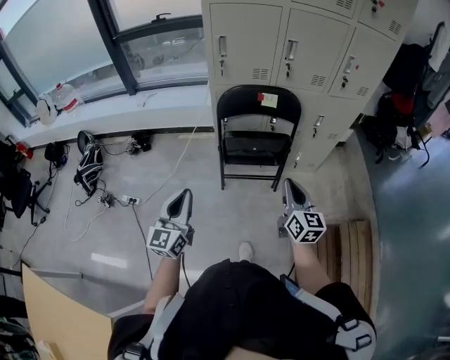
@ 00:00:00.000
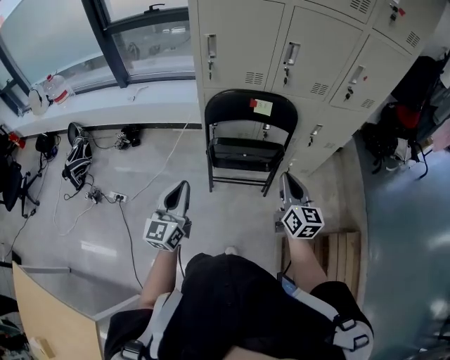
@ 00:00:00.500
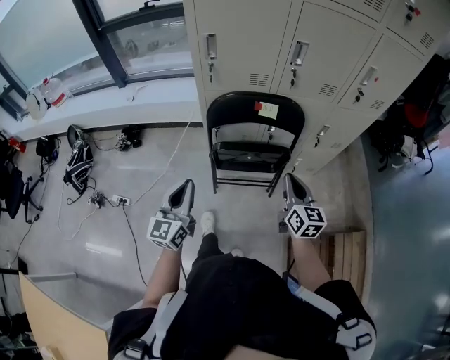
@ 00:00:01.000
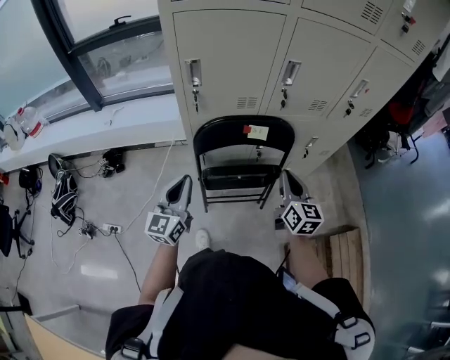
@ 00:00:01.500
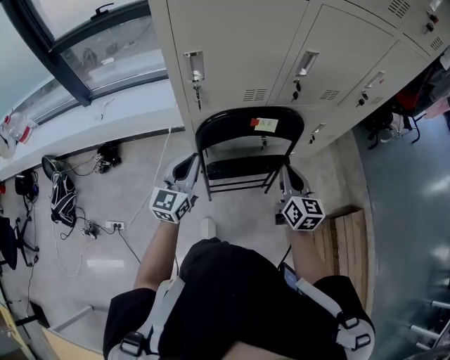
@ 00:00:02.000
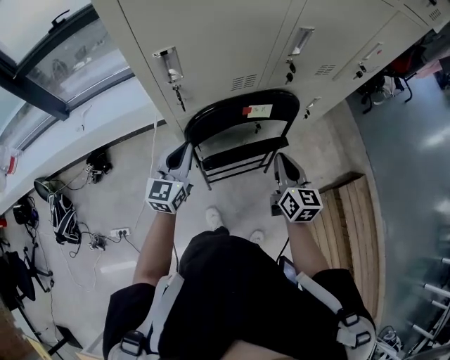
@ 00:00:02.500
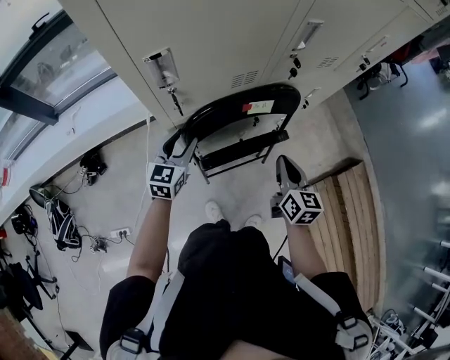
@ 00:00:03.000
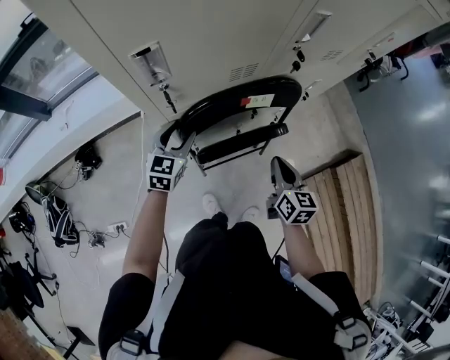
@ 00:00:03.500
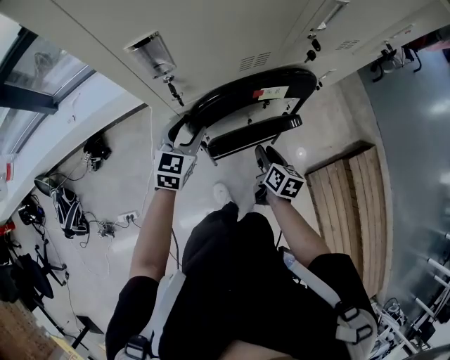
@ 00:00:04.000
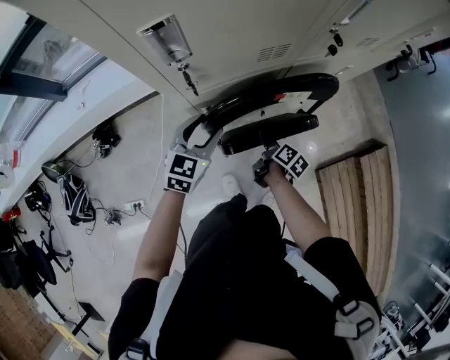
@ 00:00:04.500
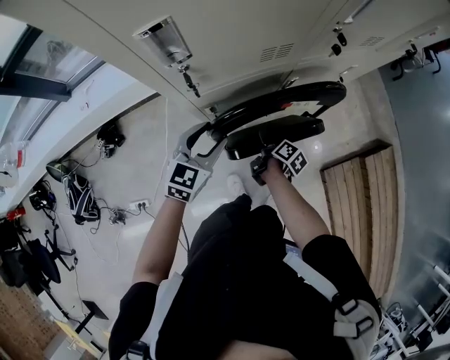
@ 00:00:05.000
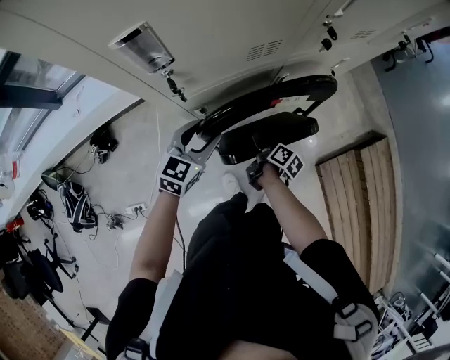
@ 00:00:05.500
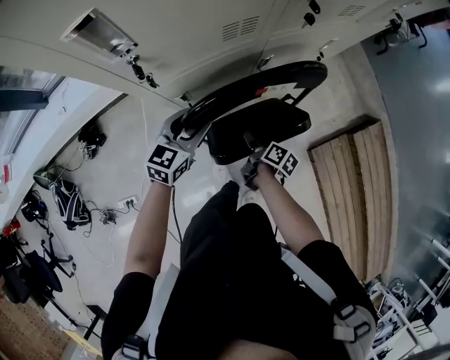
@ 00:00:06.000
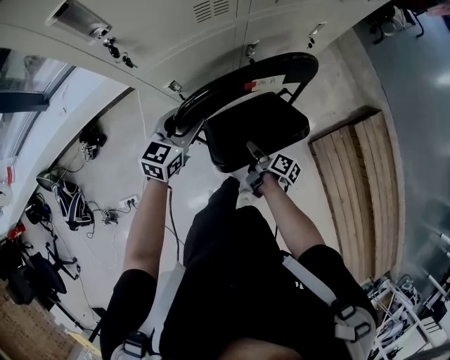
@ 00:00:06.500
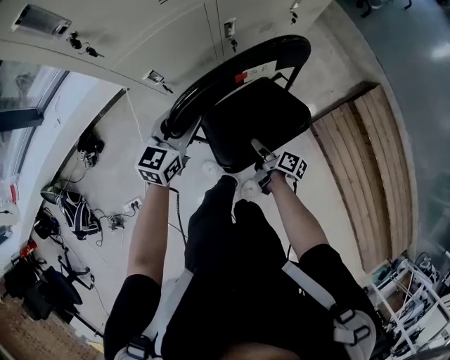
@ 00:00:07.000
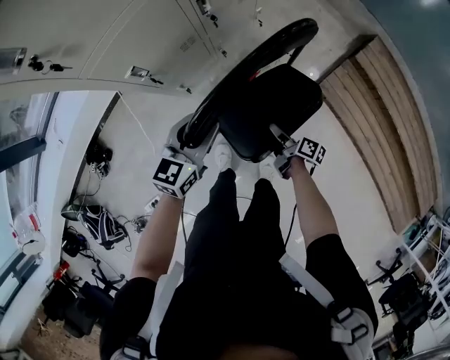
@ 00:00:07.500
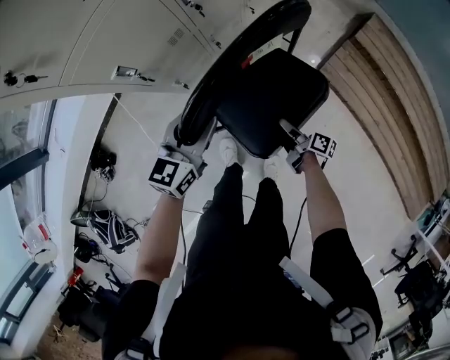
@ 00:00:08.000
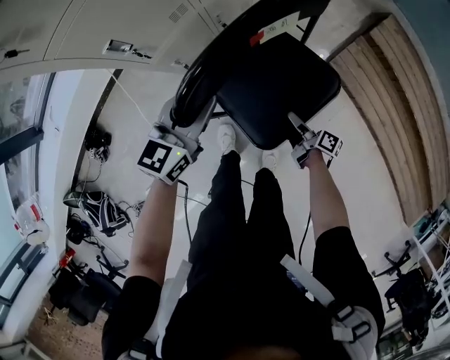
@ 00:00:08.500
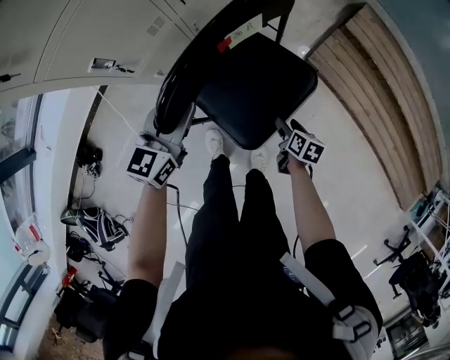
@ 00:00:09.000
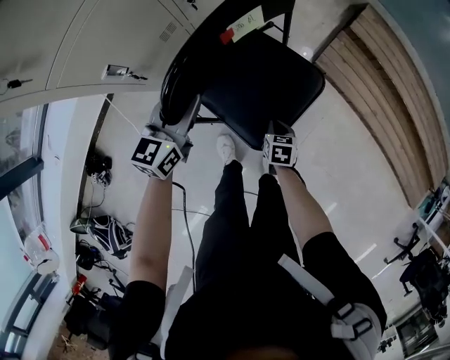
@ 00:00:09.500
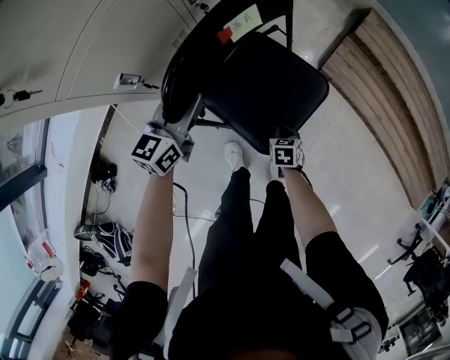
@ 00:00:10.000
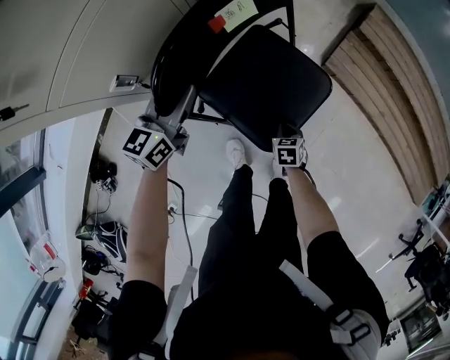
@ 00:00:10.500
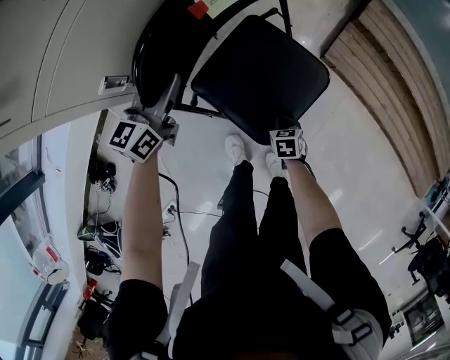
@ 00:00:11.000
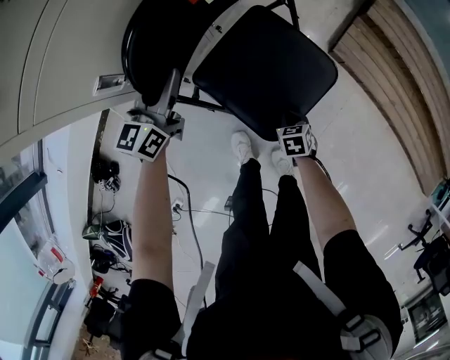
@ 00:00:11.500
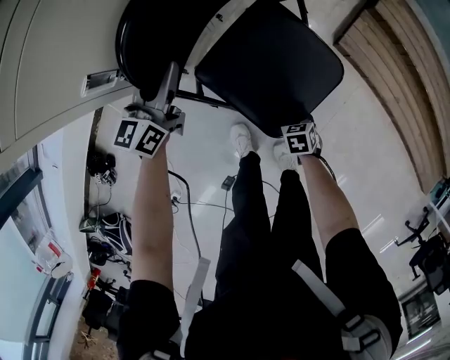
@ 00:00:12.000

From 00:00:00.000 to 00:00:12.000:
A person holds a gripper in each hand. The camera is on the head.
From 00:00:00.000 to 00:00:02.000: The grippers both shift forward by some 35 cm.
From 00:00:02.000 to 00:00:04.000: The right gripper travels downward by approximately 20 cm, rotates approximately 40 degrees, and opens, while the left gripper heads downward and forward, covering roughly 15 cm, swivels roughly 30 degrees, and opens.
From 00:00:04.000 to 00:00:06.000: The right gripper is displaced downward by approximately 10 cm, turns by some 40 degrees, and opens and closes again. Meanwhile the left gripper moves to the right, about 5 cm.
From 00:00:06.000 to 00:00:08.000: The right gripper is displaced backward, to the right and downward by some 30 cm. The left gripper heads backward and to the right, covering about 20 cm.
From 00:00:08.000 to 00:00:10.000: The left gripper heads to the left and forward, covering approximately 10 cm. The right gripper goes some 5 cm downward, tips its fingers downward by roughly 40 degrees, and closes its fingers.
From 00:00:10.000 to 00:00:12.000: The right gripper goes roughly 10 cm downward; the left gripper moves some 10 cm.

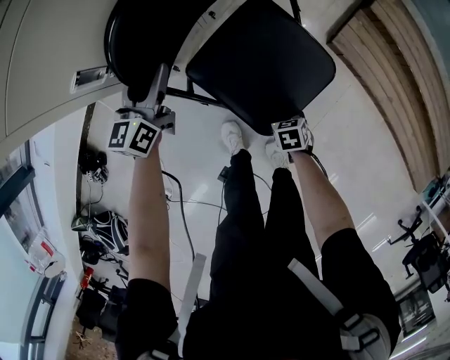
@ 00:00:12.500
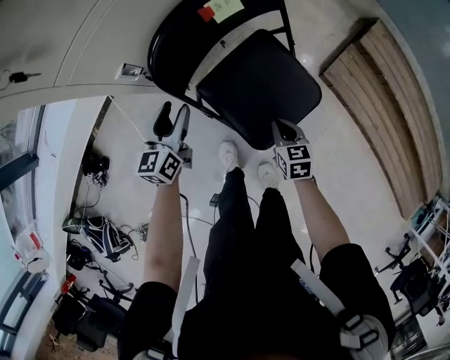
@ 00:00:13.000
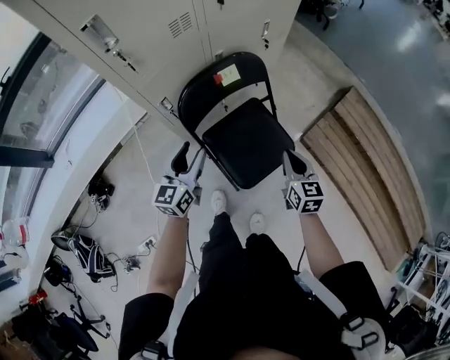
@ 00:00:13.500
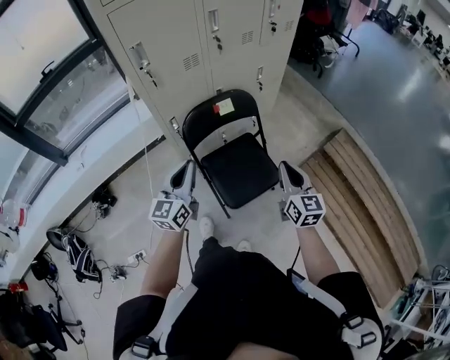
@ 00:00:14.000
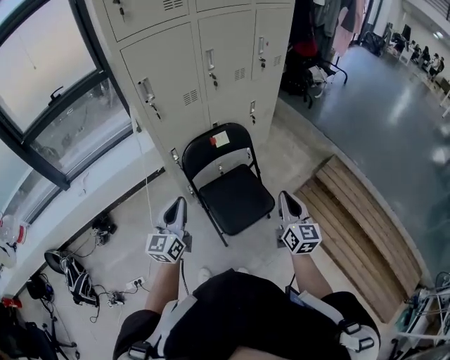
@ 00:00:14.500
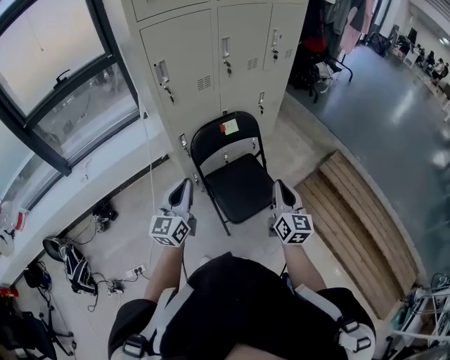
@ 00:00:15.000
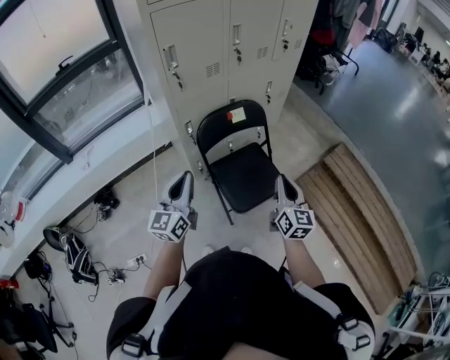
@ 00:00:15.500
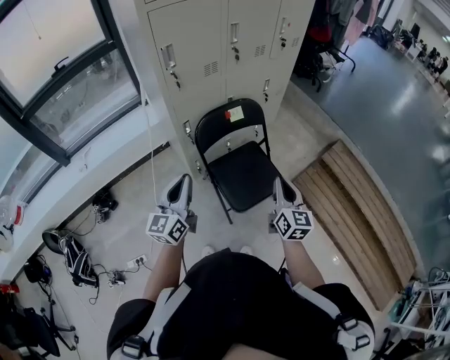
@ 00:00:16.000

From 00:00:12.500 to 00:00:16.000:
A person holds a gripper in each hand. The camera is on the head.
From 00:00:12.500 to 00:00:14.500: The left gripper moves upward, some 35 cm, turns by some 30 degrees, and closes, while the right gripper goes roughly 60 cm upward, and points its fingers approximately 70 degrees further upward.
From 00:00:14.500 to 00:00:16.000: The right gripper moves to the left, about 10 cm. The left gripper ends up about 5 cm from where it was.

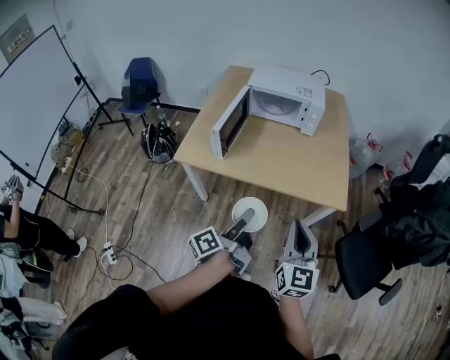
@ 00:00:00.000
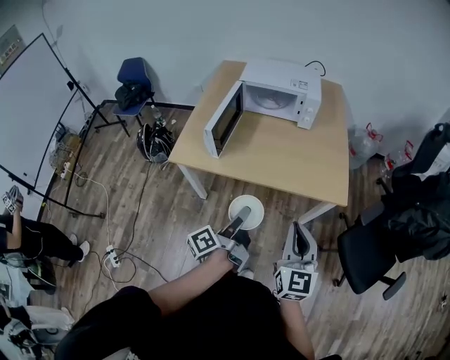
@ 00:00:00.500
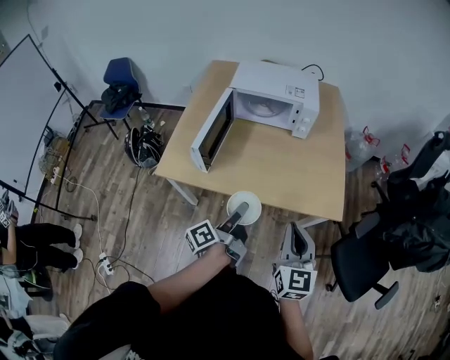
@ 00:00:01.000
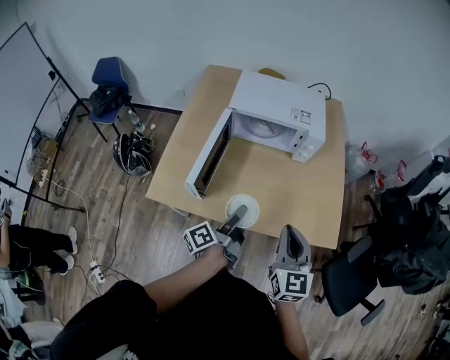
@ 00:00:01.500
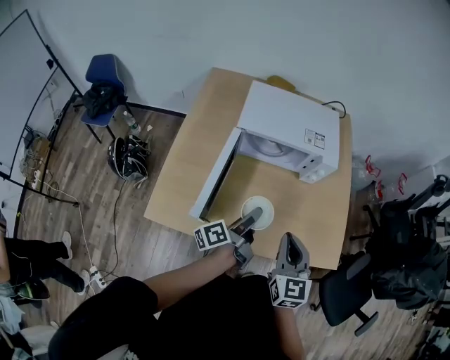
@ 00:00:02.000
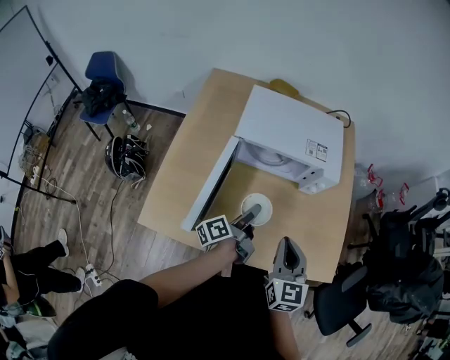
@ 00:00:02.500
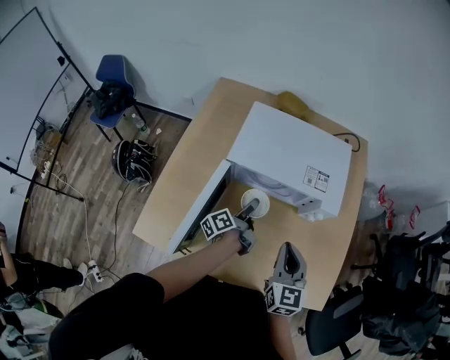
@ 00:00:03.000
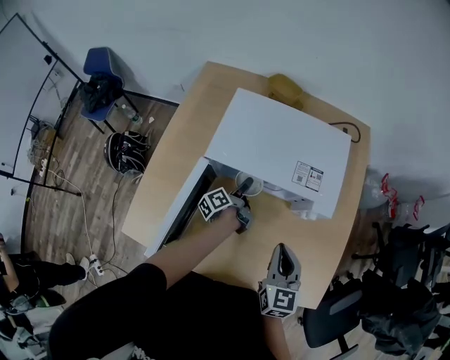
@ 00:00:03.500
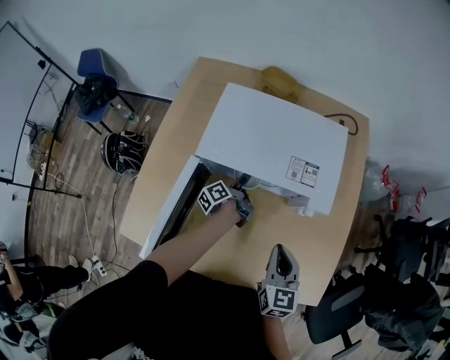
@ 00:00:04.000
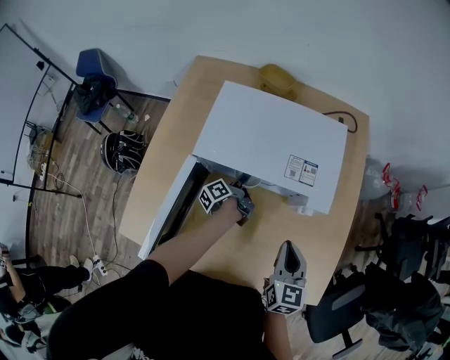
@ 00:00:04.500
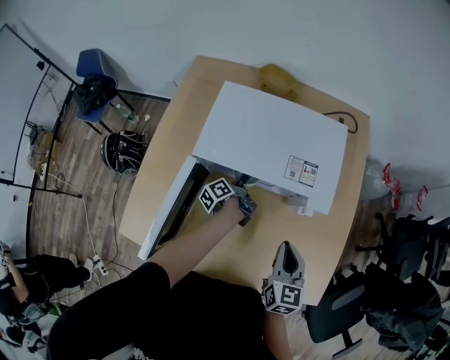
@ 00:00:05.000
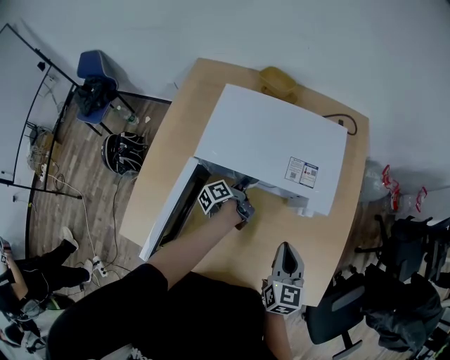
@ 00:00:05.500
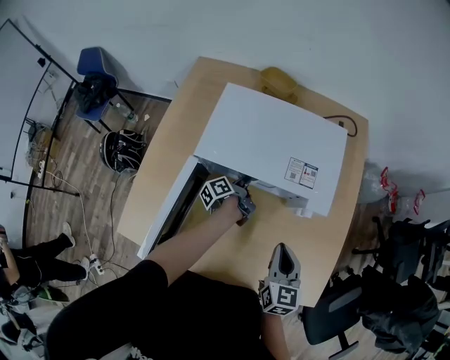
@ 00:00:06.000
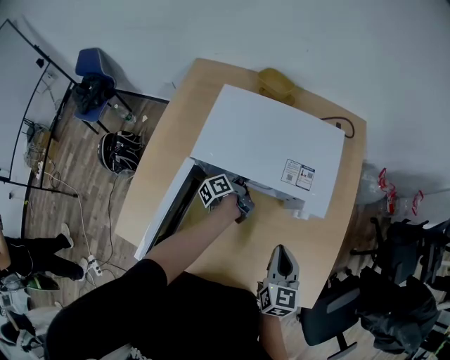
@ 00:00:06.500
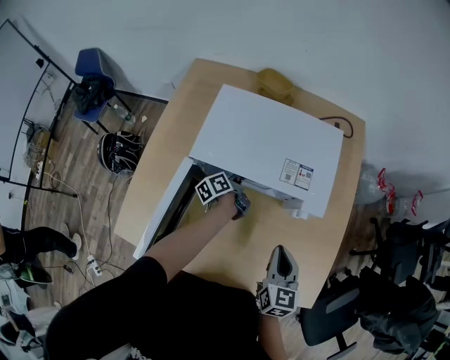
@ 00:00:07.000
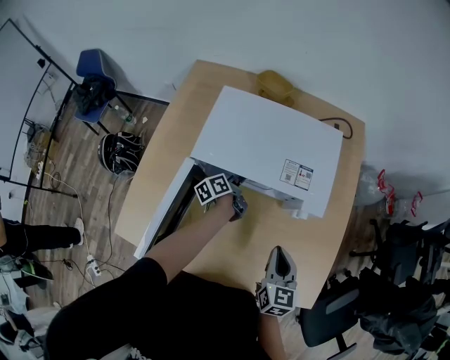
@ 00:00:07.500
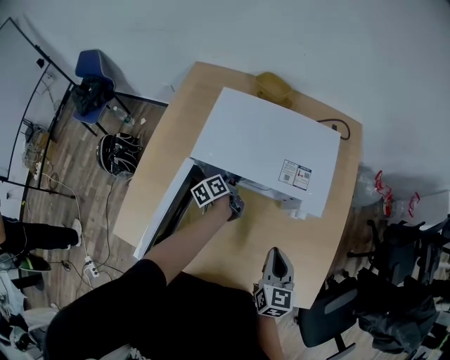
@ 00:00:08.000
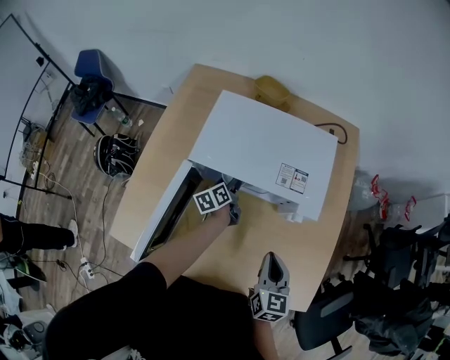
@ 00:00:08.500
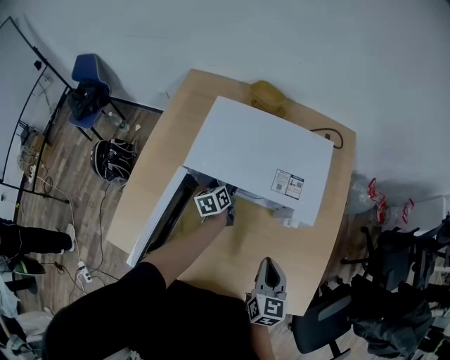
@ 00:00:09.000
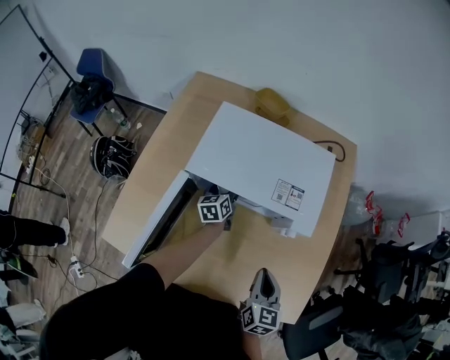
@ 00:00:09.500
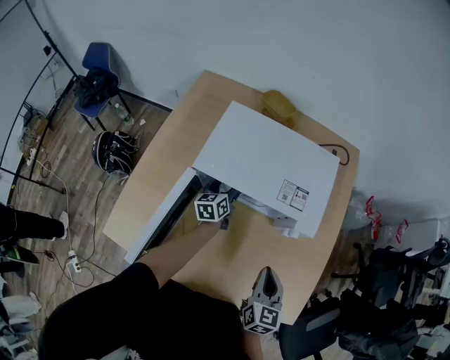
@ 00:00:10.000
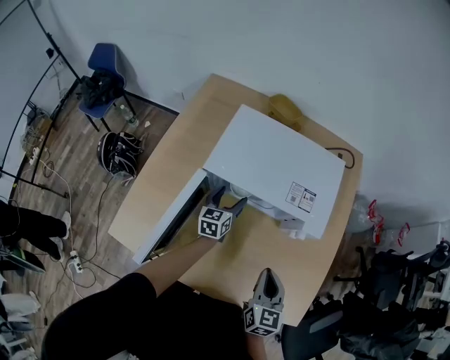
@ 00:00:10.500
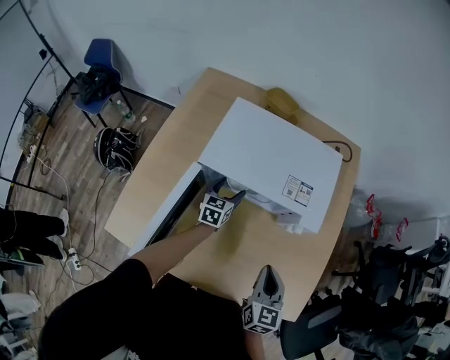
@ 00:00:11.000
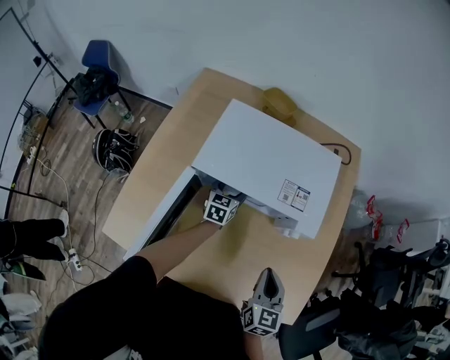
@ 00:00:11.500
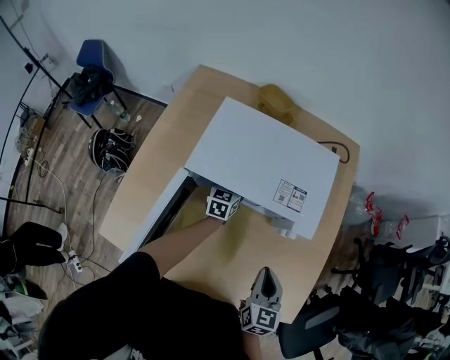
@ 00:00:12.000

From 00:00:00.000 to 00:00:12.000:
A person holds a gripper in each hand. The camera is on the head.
From 00:00:00.000 to 00:00:02.000: Both grippers move forward, approximately 35 cm.
From 00:00:02.000 to 00:00:04.000: The left gripper is displaced forward and downward by some 35 cm, and changes its angle by about 20 degrees. The right gripper heads forward, downward and to the right, covering approximately 20 cm.
From 00:00:04.000 to 00:00:06.000: There are only small adjustments of the grippers.
From 00:00:06.000 to 00:00:08.000: The left gripper swivels approximately 20 degrees.
From 00:00:08.000 to 00:00:10.000: The left gripper changes its angle by some 30 degrees.
From 00:00:10.000 to 00:00:12.000: The left gripper shifts by roughly 5 cm, and swivels some 20 degrees.
